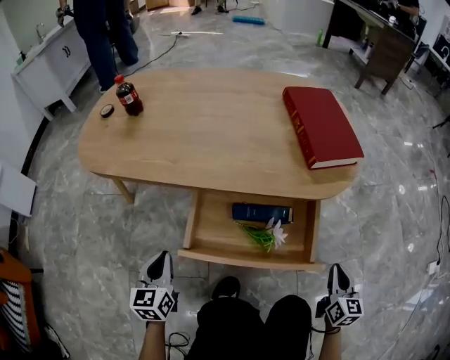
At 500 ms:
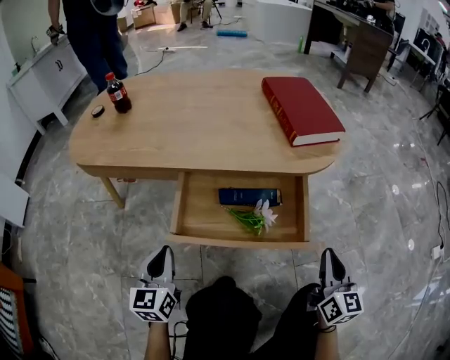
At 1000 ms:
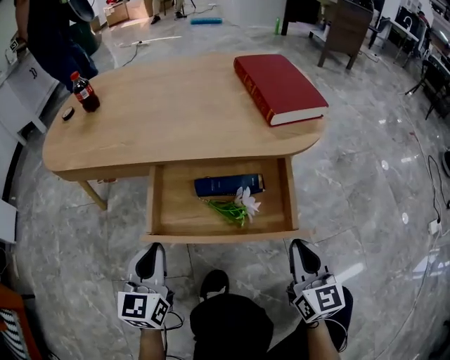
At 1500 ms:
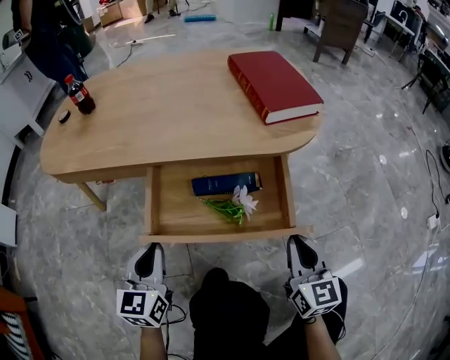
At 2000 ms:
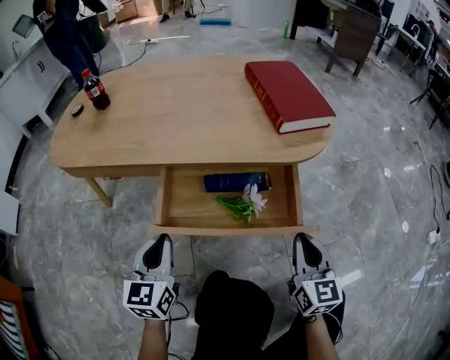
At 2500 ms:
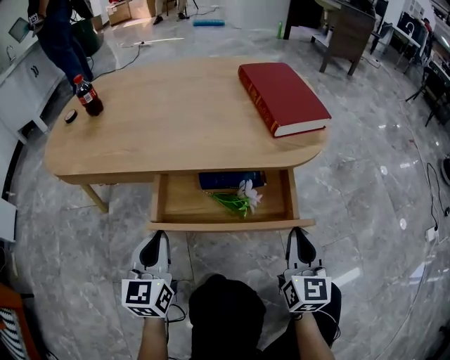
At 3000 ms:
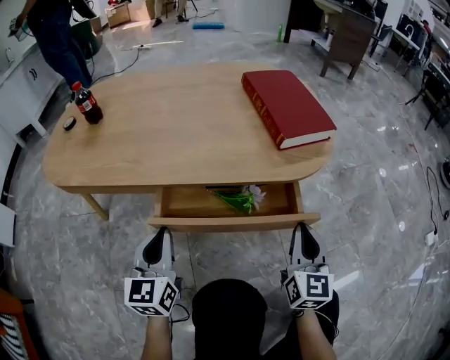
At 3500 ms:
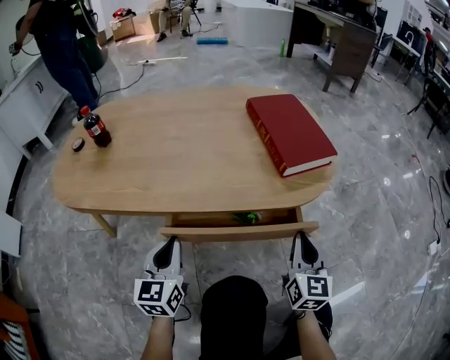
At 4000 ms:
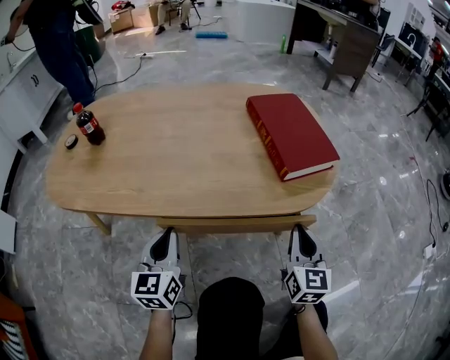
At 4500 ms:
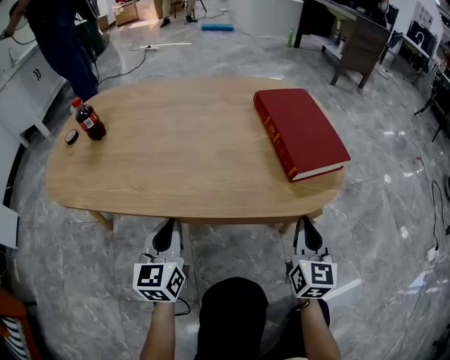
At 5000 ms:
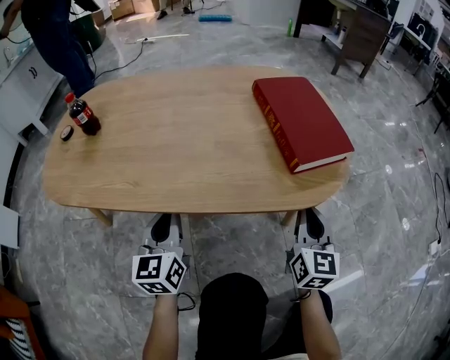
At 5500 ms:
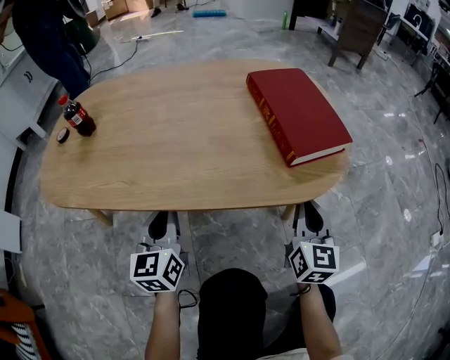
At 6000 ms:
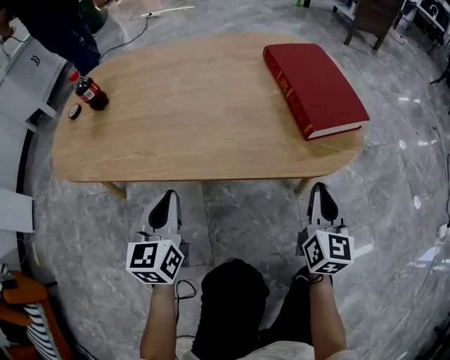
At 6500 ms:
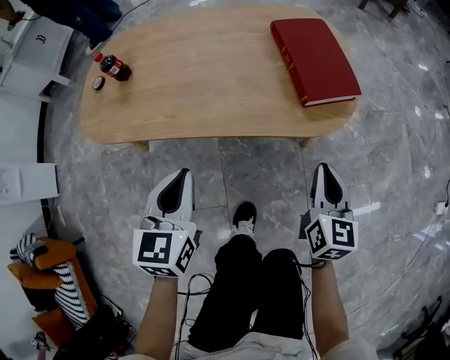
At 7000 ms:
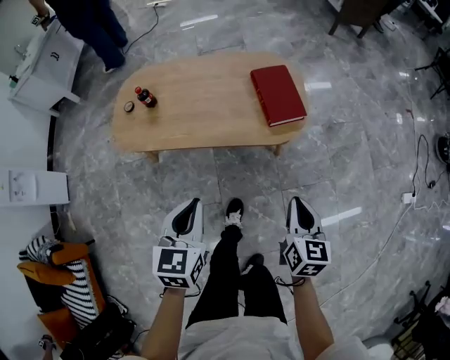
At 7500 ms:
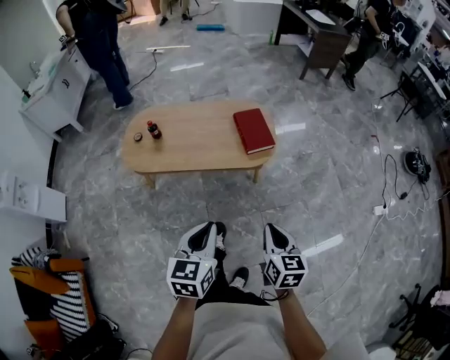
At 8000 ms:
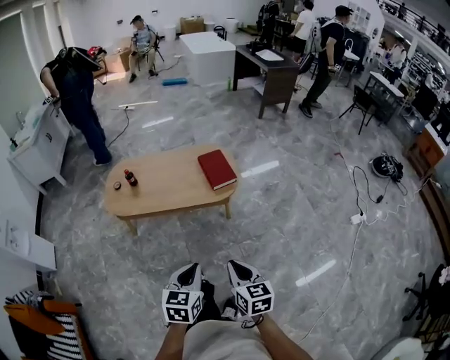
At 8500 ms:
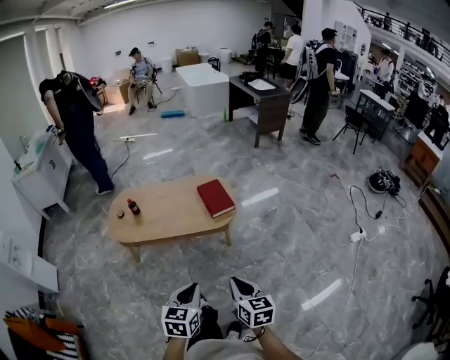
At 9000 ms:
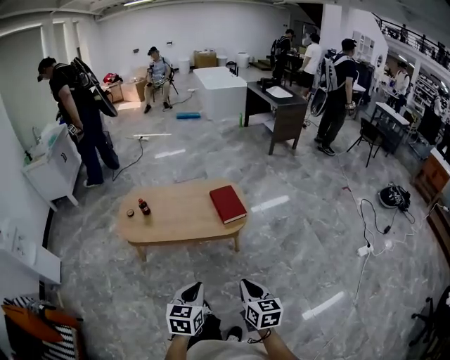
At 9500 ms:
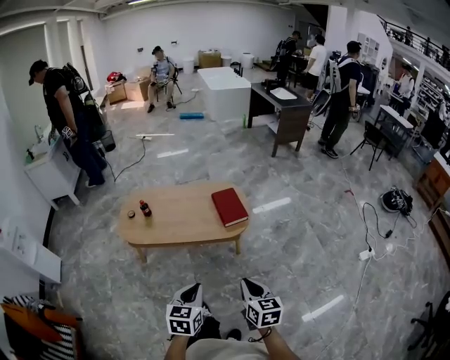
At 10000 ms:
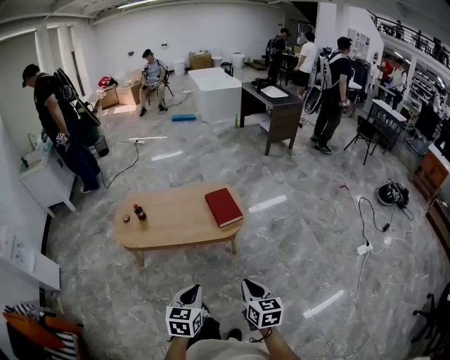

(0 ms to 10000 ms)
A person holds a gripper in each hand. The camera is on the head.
0 ms - 2000 ms: The left gripper shifts roughly 10 cm to the right, while the right gripper moves to the left, roughly 10 cm.
2000 ms - 4000 ms: Both grippers move forward, roughly 15 cm.
4000 ms - 6000 ms: The grippers move only a little.
6000 ms - 8000 ms: The pair of grippers is taken backward, about 50 cm. The grippers both shift upward by roughly 50 cm. The right gripper swivels roughly 20 degrees. Meanwhile the left gripper turns by about 20 degrees.
8000 ms - 10000 ms: The right gripper changes place by roughly 5 cm.

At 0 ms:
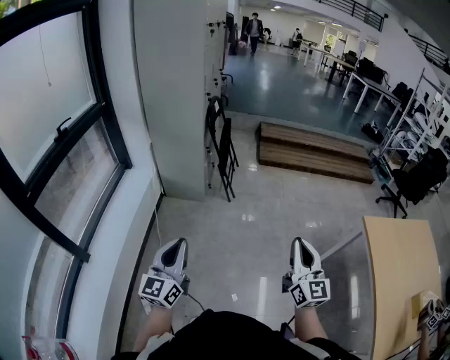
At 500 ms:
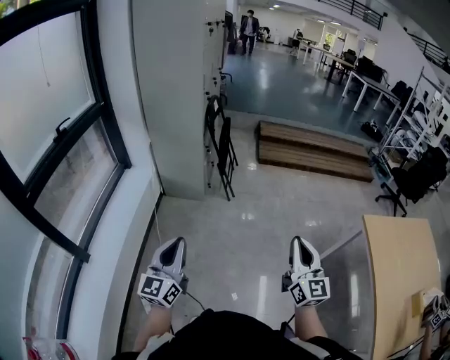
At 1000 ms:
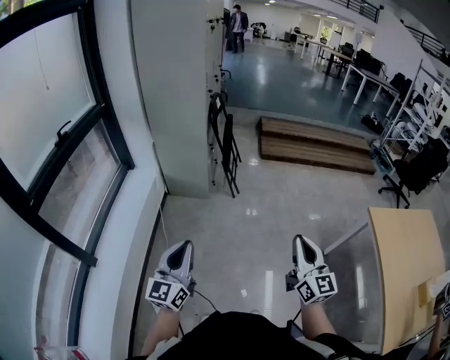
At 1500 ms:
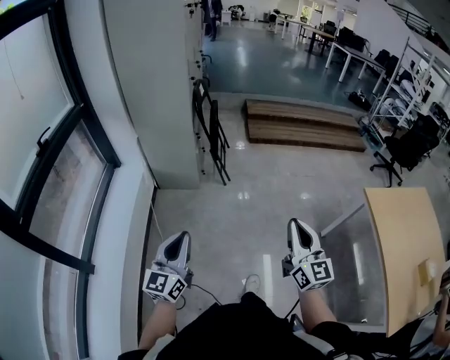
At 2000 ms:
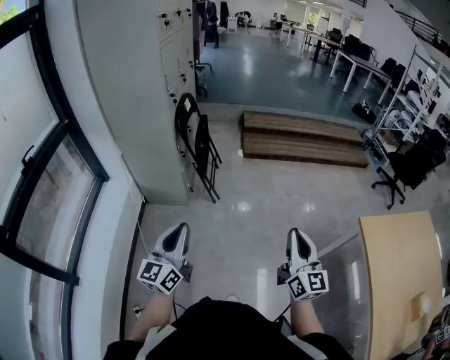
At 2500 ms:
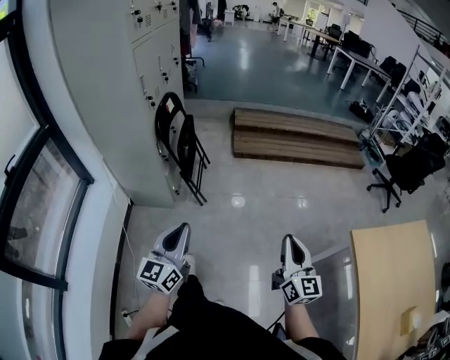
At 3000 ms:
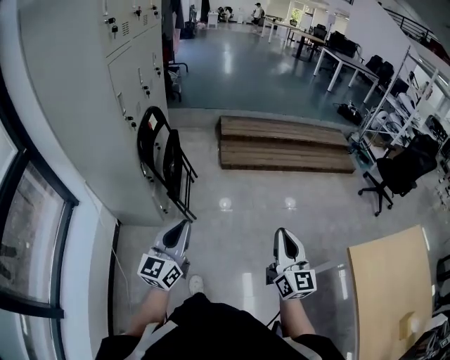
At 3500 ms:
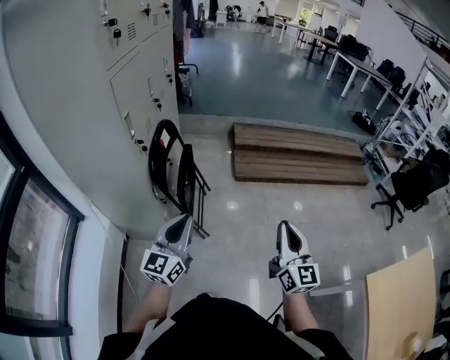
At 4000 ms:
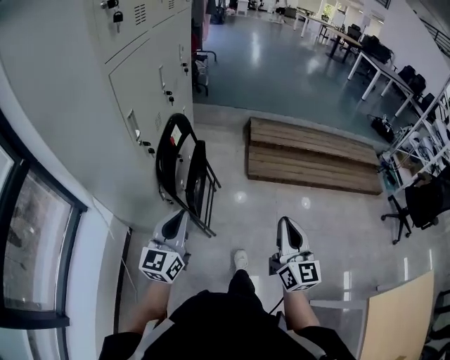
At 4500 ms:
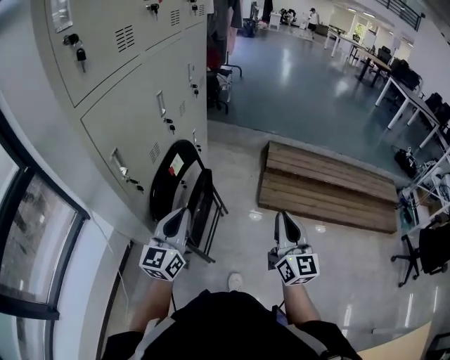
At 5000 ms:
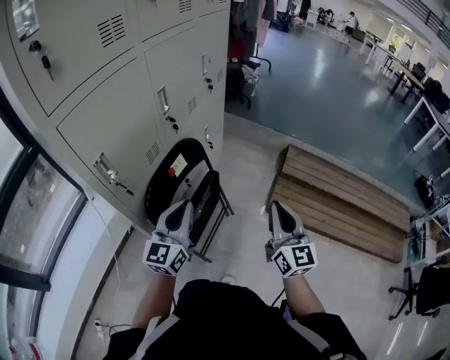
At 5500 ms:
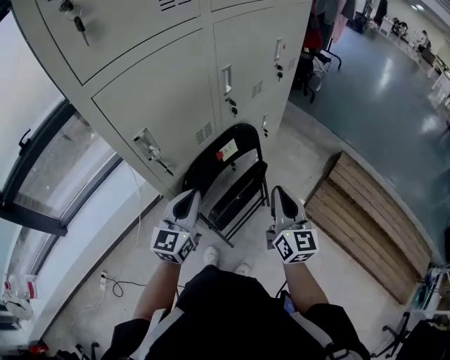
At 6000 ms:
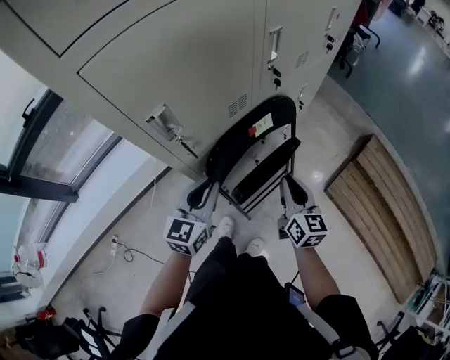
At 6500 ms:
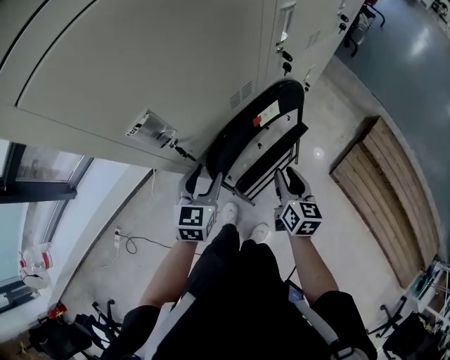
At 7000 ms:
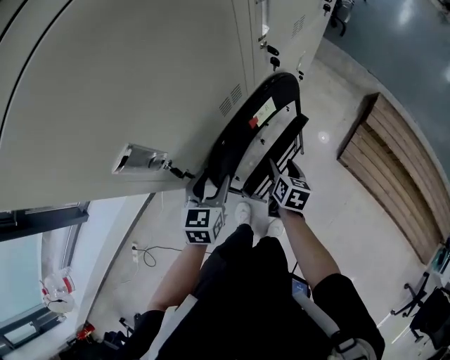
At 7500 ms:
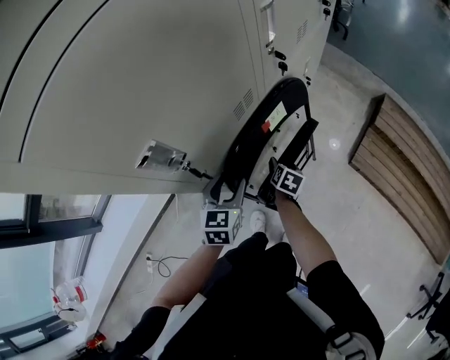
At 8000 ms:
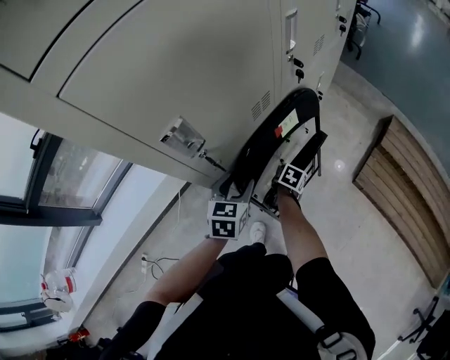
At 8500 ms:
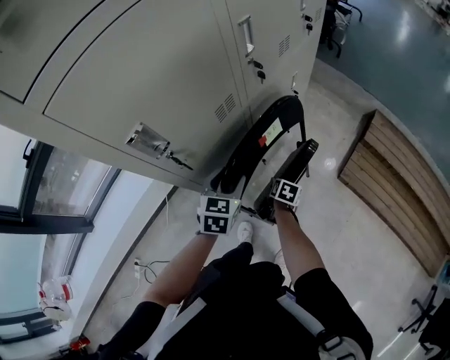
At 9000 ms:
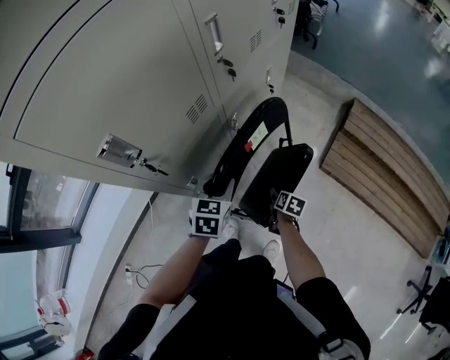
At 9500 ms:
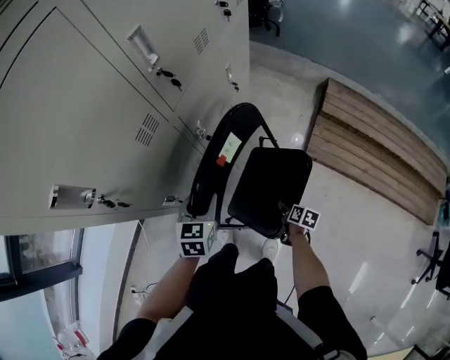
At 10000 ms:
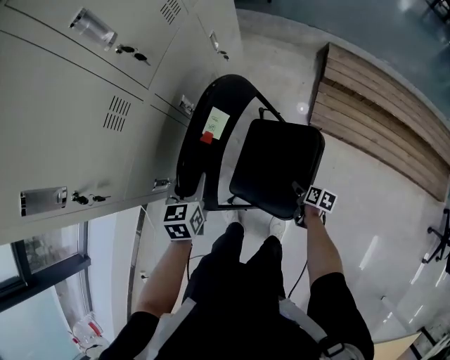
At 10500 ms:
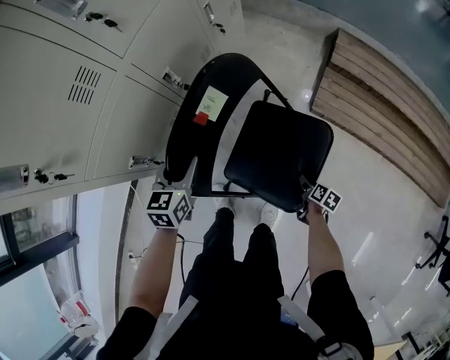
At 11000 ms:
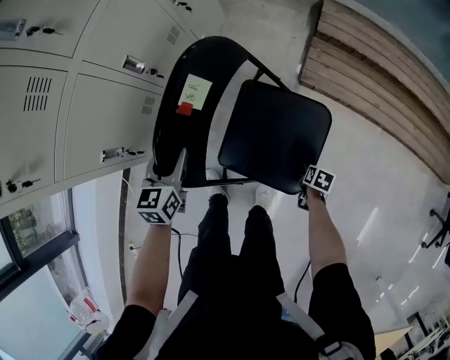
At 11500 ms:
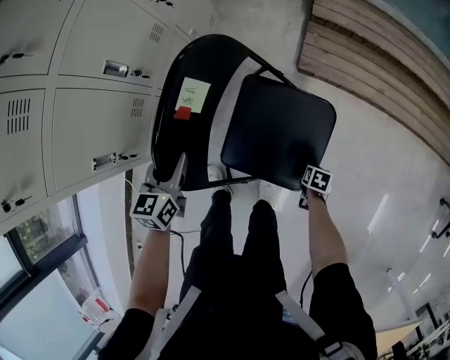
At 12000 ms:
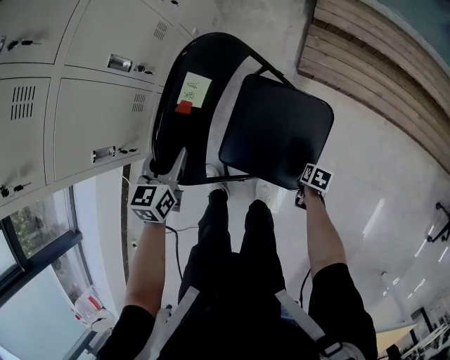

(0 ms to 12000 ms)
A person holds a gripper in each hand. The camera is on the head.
0 ms - 2000 ms: Both grippers travel together forward and to the right, roughly 20 cm.
2000 ms - 4000 ms: The two grippers travel together, forward, approximately 50 cm.
4000 ms - 6000 ms: The left gripper ends up approximately 20 cm from where it was, and swivels roughly 40 degrees. Meanwhile the right gripper moves approximately 40 cm, and turns by roughly 50 degrees.
6000 ms - 8000 ms: The right gripper travels downward by some 30 cm, tips its fingers downward by roughly 50 degrees, and opens. The left gripper travels downward and forward by about 10 cm, changes its angle by approximately 20 degrees, and opens its fingers.
8000 ms - 10000 ms: The right gripper goes roughly 35 cm to the right and backward, and rotates roughly 30 degrees; the left gripper heads to the right and downward, covering about 15 cm.
10000 ms - 12000 ms: The right gripper ends up about 20 cm from where it was, swivels roughly 20 degrees, and closes up. Meanwhile the left gripper changes place by approximately 15 cm.

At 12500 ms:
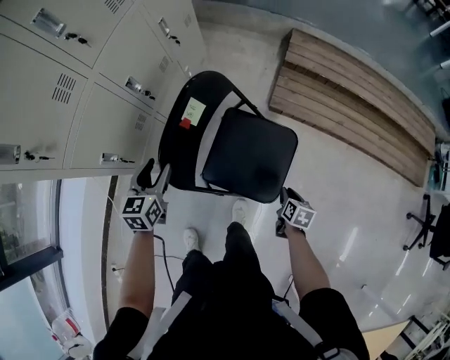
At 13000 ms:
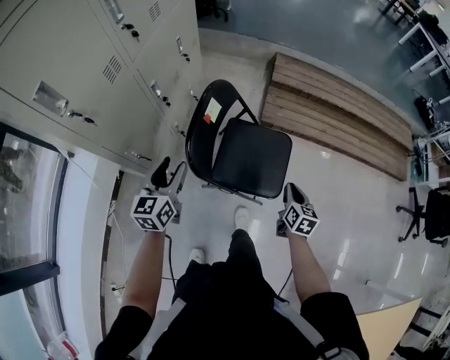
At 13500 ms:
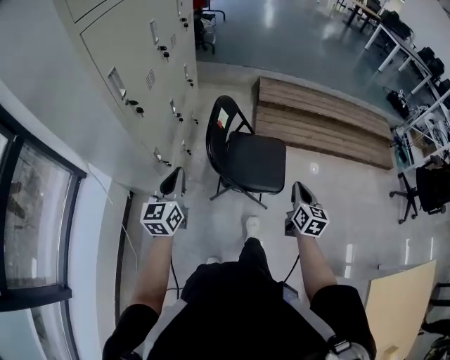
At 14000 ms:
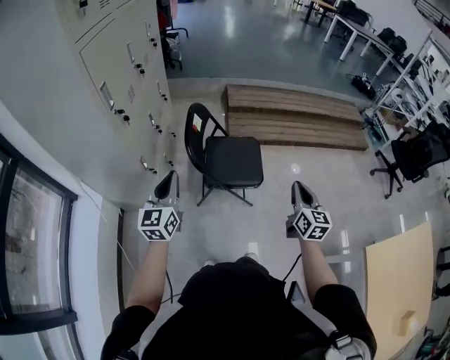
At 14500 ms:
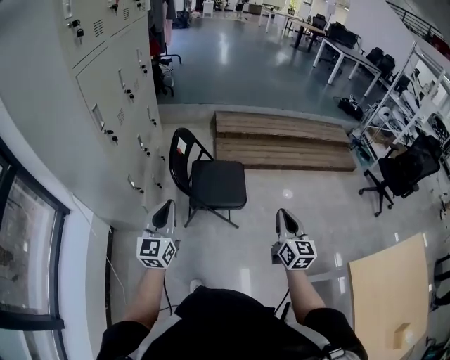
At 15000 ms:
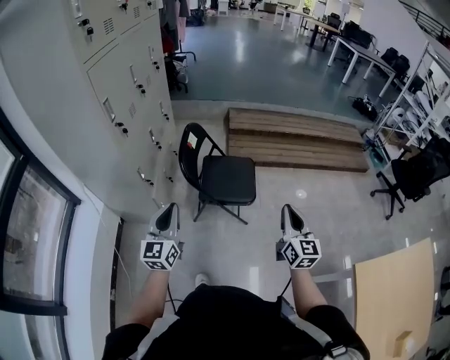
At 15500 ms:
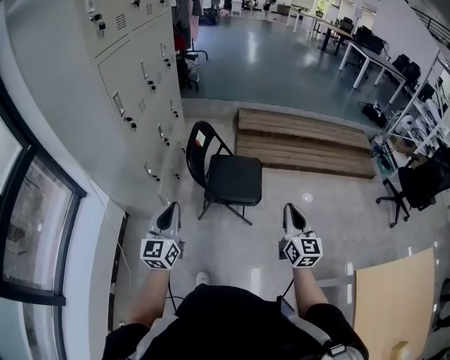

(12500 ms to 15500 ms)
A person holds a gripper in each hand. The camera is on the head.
12500 ms - 14000 ms: The right gripper goes roughly 50 cm upward and backward, and tips its fingers upward by roughly 40 degrees. Meanwhile the left gripper moves backward and upward, approximately 35 cm, points its fingers about 30 degrees further upward, and closes.
14000 ms - 15500 ms: The right gripper is displaced backward and upward by approximately 5 cm, while the left gripper travels backward and to the right by about 15 cm.

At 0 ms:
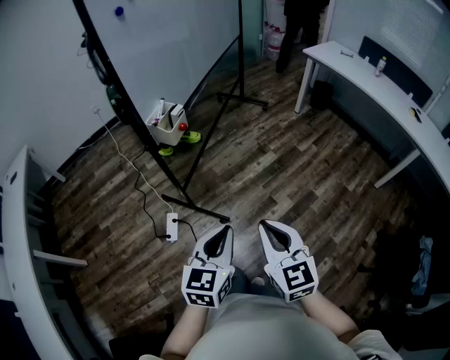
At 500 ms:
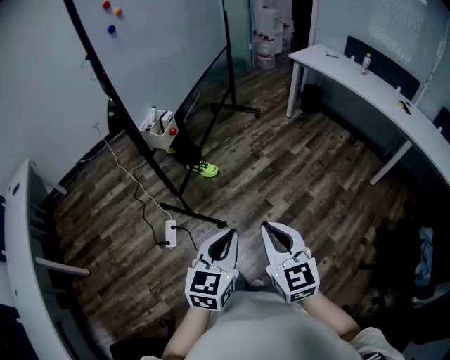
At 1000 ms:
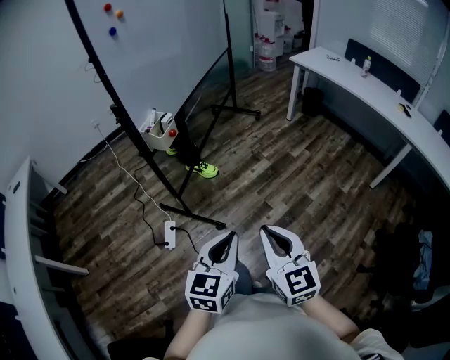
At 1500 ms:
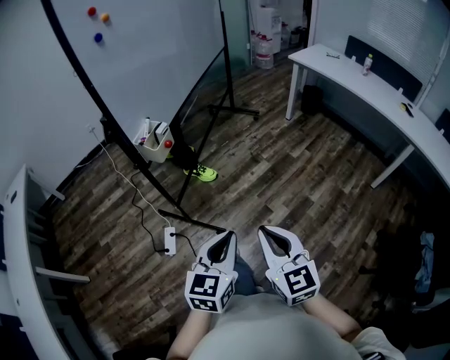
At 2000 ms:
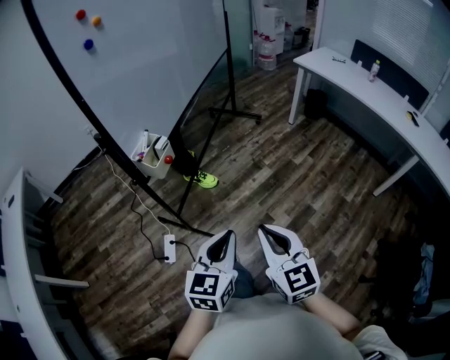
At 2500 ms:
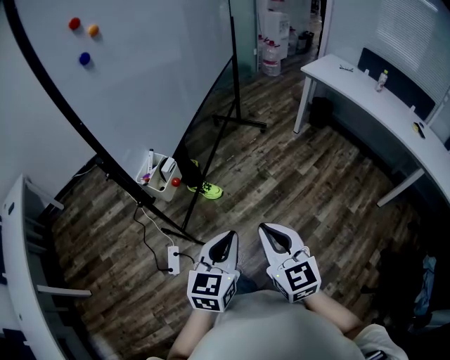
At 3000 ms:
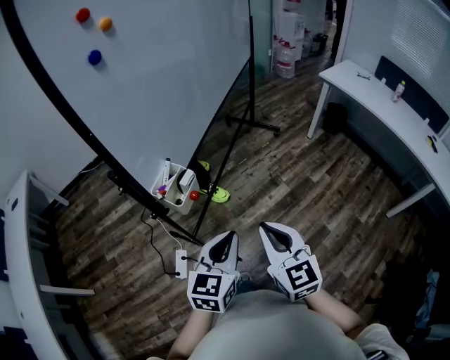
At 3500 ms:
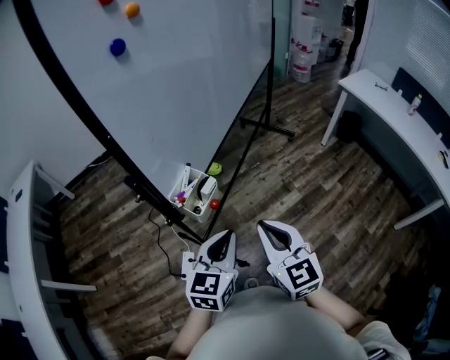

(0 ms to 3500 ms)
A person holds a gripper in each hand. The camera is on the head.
0 ms - 2000 ms: The grippers both shift forward by about 10 cm.
2000 ms - 3500 ms: The two grippers go approximately 25 cm forward and to the left.
